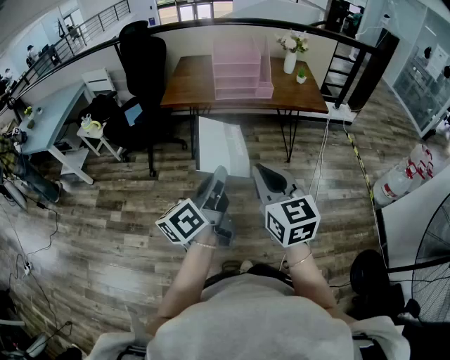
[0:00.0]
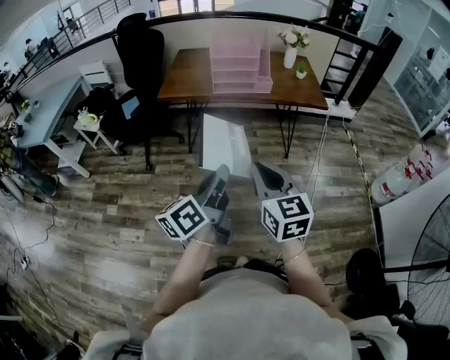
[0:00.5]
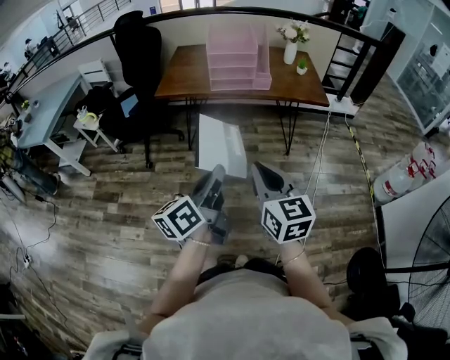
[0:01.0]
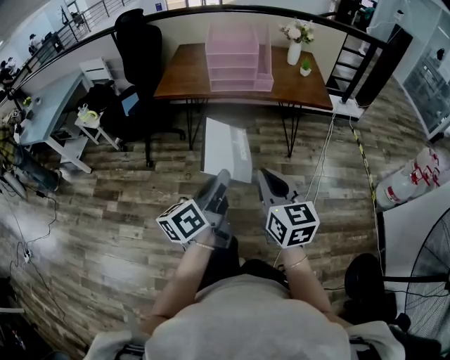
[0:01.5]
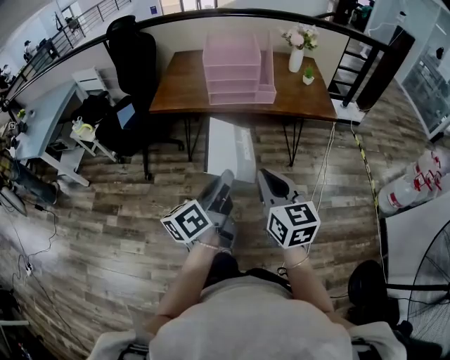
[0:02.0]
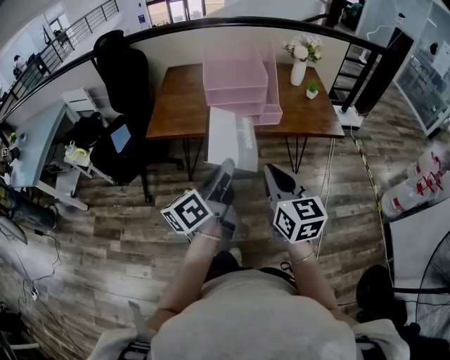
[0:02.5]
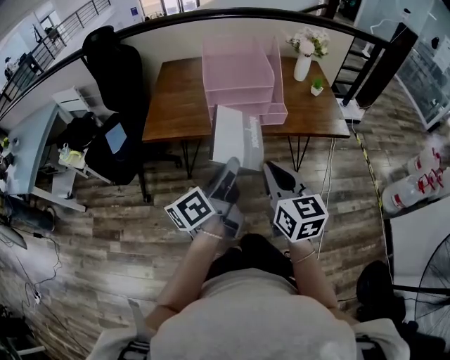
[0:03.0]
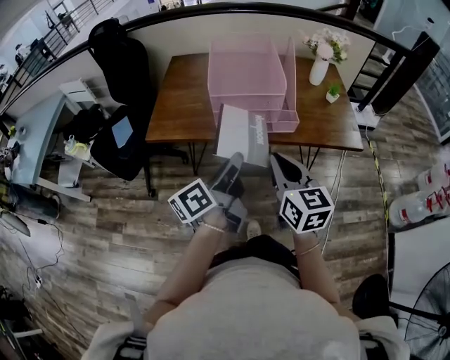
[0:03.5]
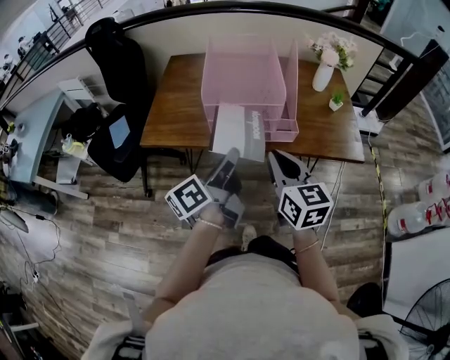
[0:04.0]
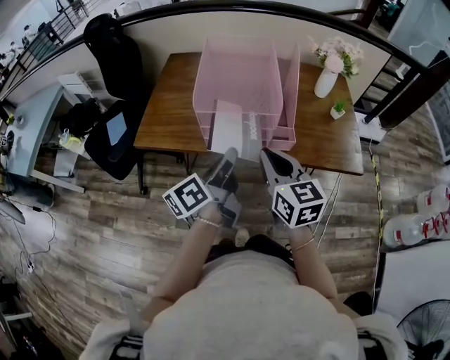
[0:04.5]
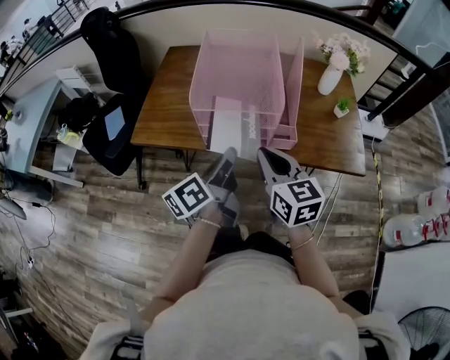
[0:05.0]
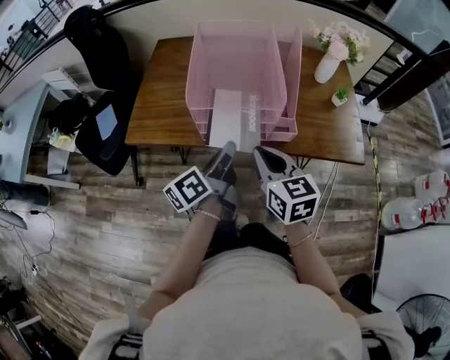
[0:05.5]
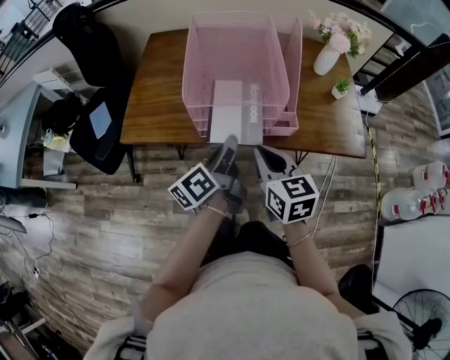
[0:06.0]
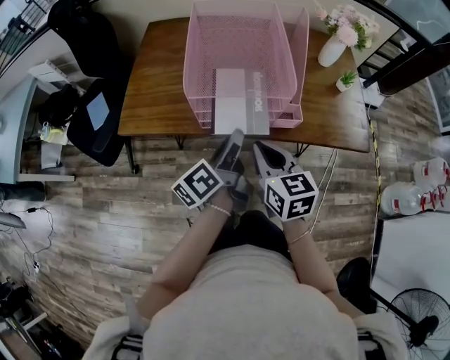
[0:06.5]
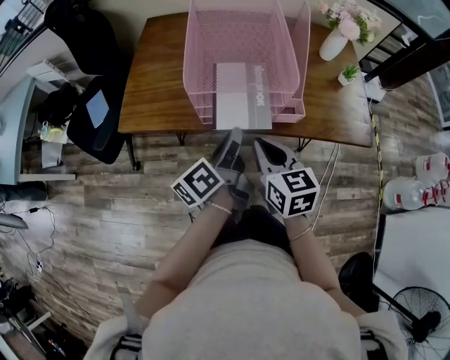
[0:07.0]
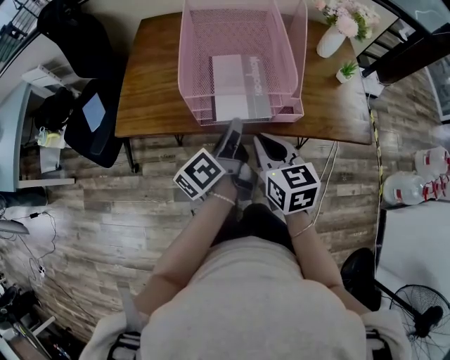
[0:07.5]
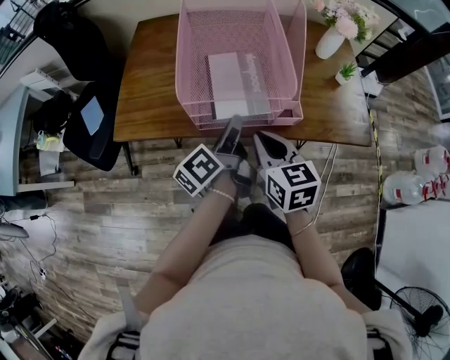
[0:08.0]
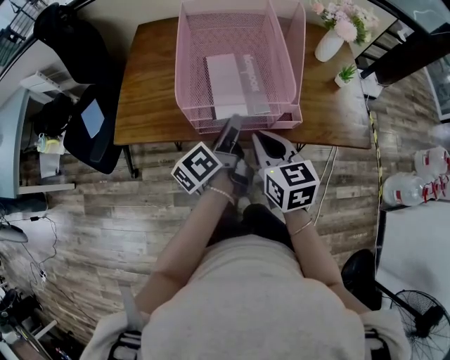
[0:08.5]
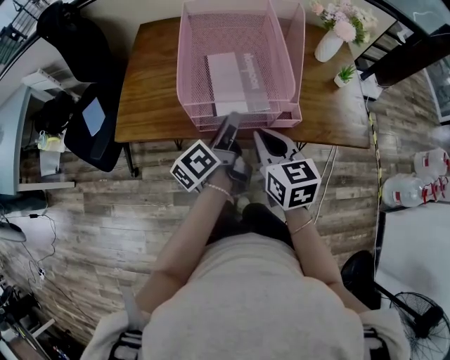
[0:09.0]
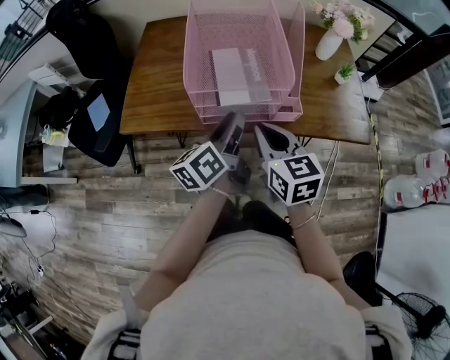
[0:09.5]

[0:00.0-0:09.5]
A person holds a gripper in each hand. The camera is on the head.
0:00.0 to 0:02.0: Both grippers travel together forward and downward, approximately 15 cm.
0:02.0 to 0:04.0: The grippers both shift forward by approximately 35 cm.
0:04.0 to 0:05.5: The left gripper shifts some 10 cm forward and downward. The right gripper heads forward, covering about 5 cm.
0:05.5 to 0:07.5: The left gripper opens, then closes again.
0:07.5 to 0:09.5: The left gripper opens up.

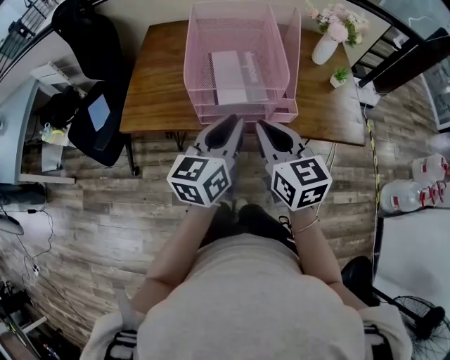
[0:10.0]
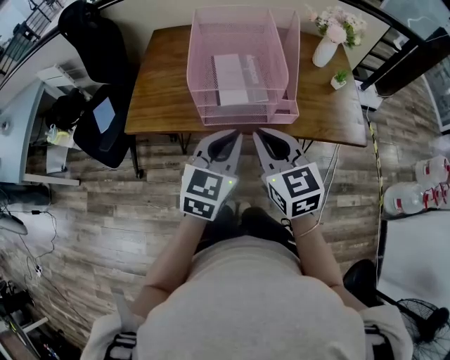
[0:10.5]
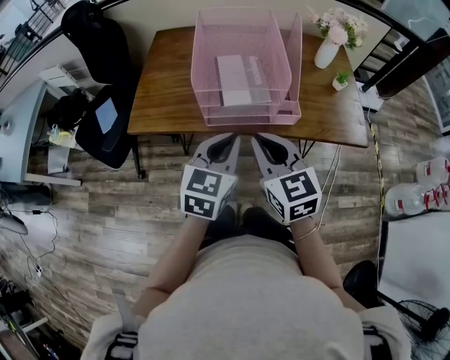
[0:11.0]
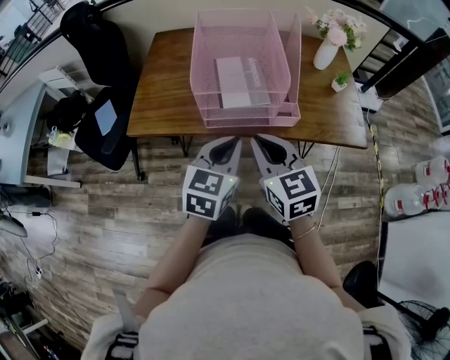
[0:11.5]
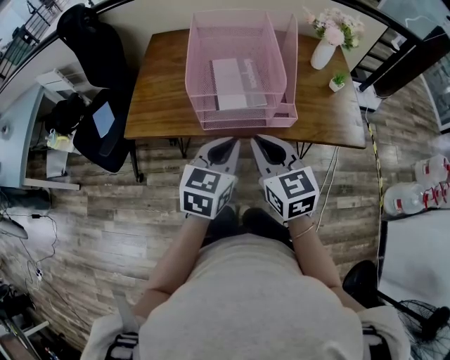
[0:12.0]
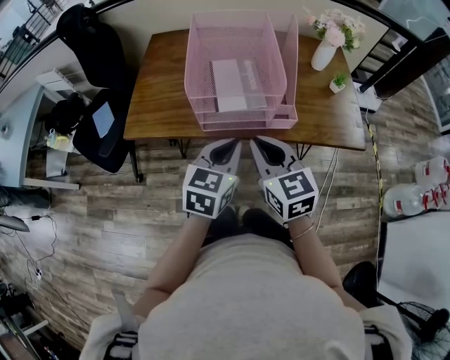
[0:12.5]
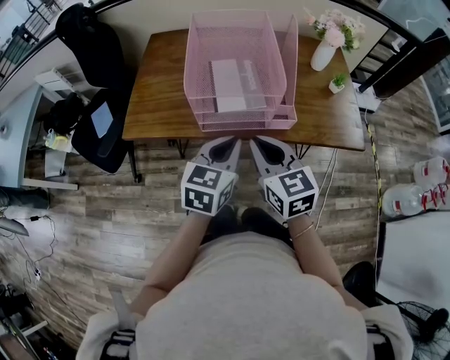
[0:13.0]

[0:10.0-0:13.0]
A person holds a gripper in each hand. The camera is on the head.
0:10.0 to 0:11.5: The left gripper swivels some 20 degrees.
0:11.5 to 0:13.0: The grippers stay close to where they were, moving slightly.

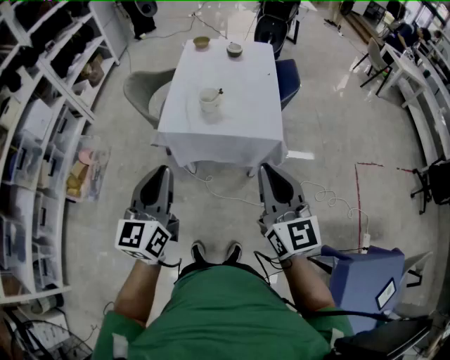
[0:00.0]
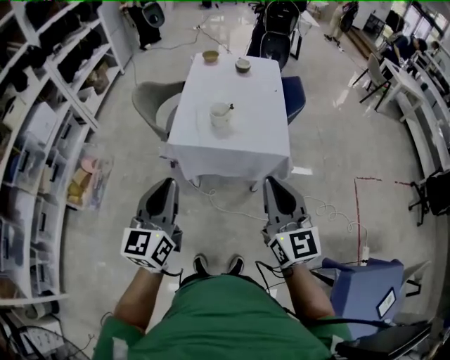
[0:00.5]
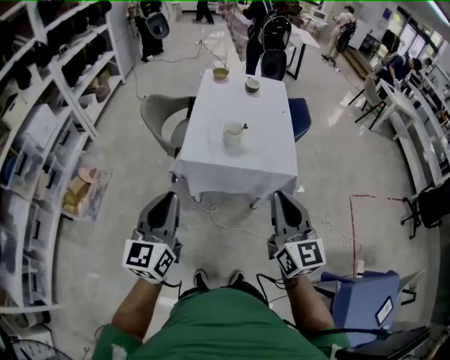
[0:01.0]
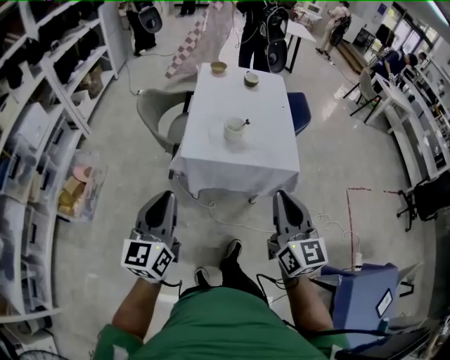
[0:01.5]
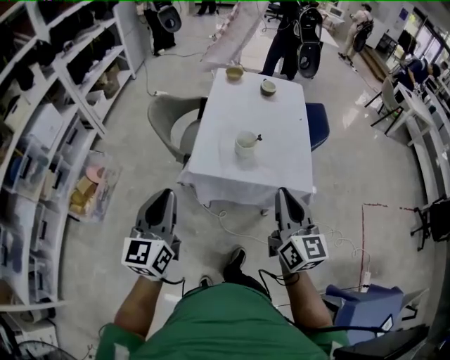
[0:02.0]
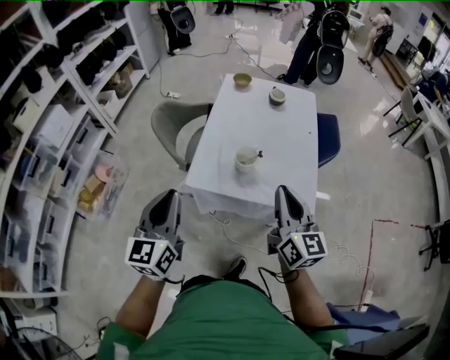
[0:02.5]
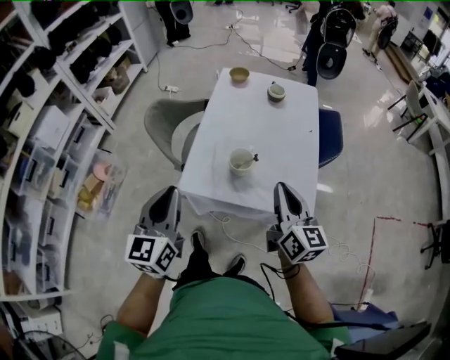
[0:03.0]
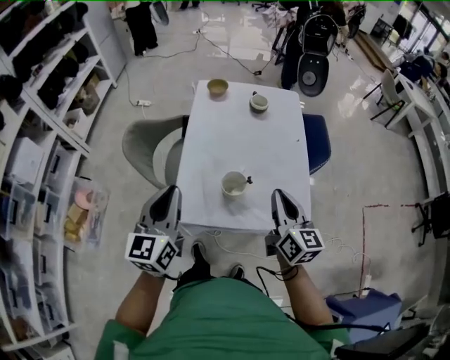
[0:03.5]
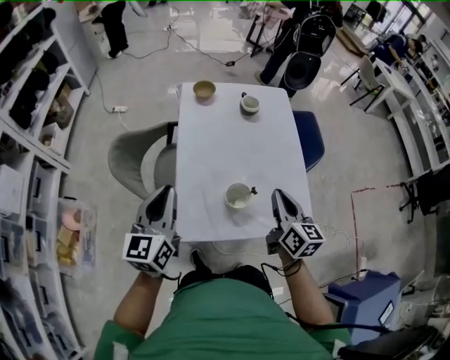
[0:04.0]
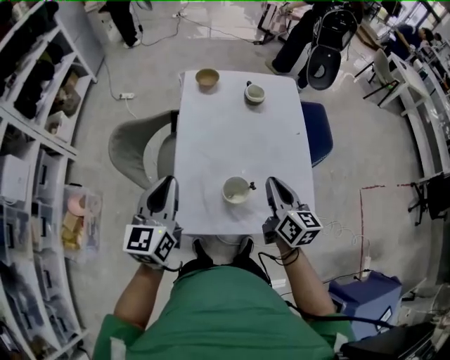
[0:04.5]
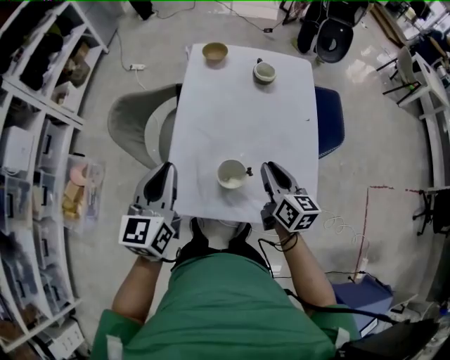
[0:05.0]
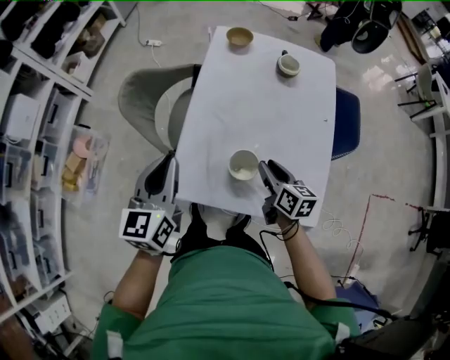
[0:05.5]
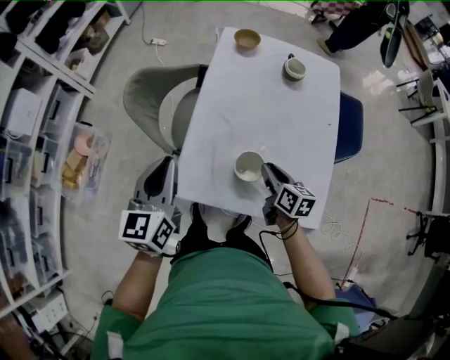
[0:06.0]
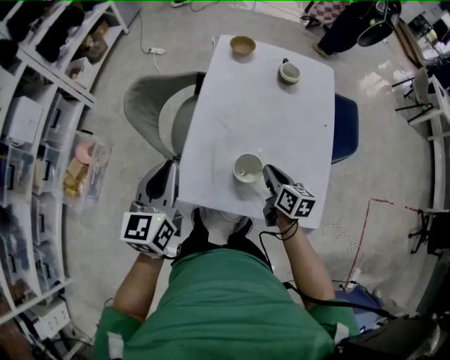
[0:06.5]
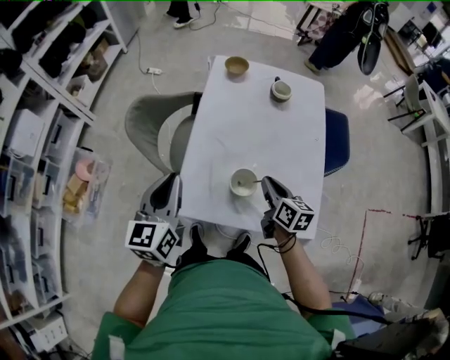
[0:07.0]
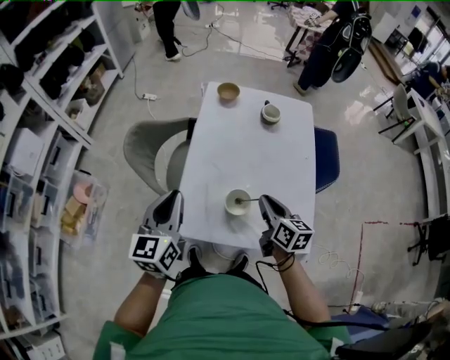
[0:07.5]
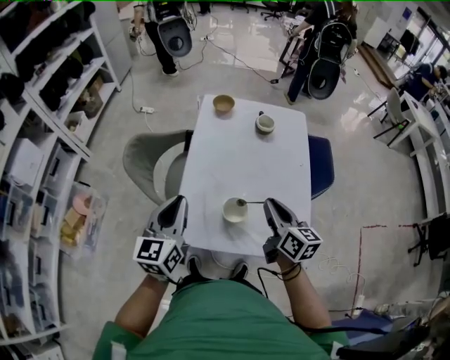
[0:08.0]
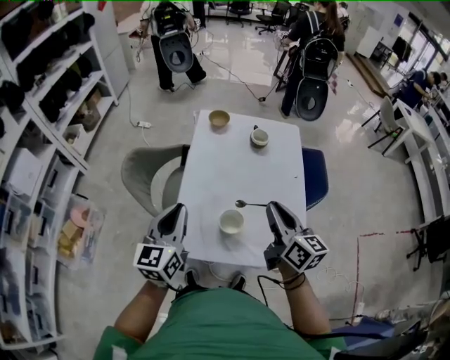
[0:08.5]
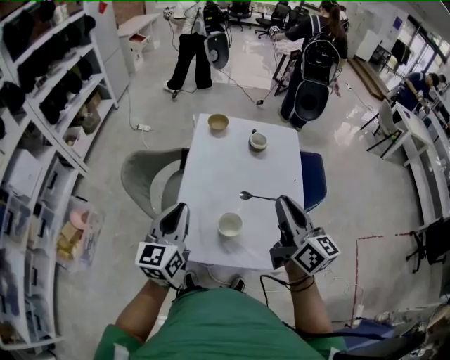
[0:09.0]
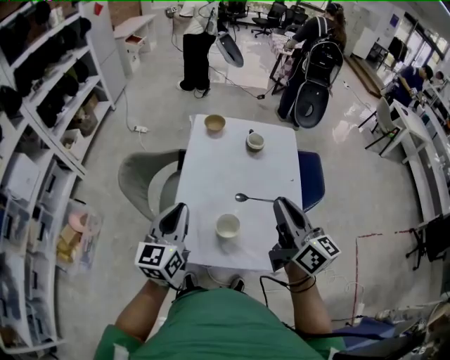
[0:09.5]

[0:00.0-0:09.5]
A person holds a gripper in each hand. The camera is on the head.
0:00.0 to 0:02.0: The left gripper travels to the left and forward by about 20 cm; the right gripper heads forward and to the left, covering about 15 cm.
0:02.0 to 0:04.0: Both grippers move forward, roughly 35 cm. The right gripper turns by roughly 20 degrees.
0:04.0 to 0:05.5: The right gripper is displaced downward by roughly 15 cm, rotates roughly 30 degrees, and opens; the left gripper changes place by about 5 cm.
0:05.5 to 0:07.5: The right gripper is displaced upward by approximately 10 cm, and closes.
0:07.5 to 0:09.5: The right gripper is displaced upward by about 20 cm, and turns by about 30 degrees. Meanwhile the left gripper moves approximately 5 cm.

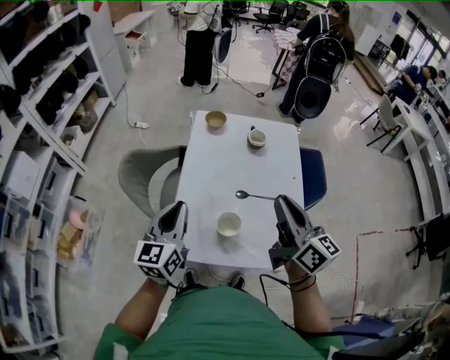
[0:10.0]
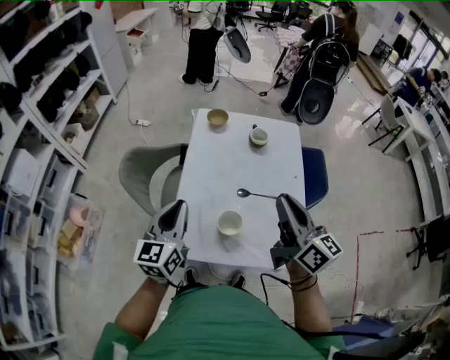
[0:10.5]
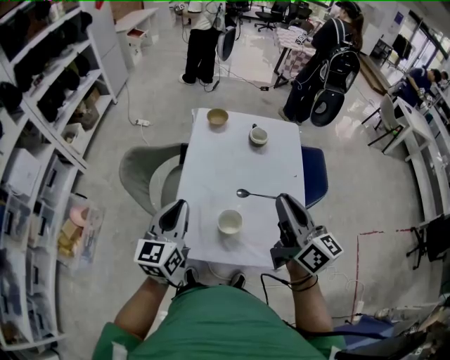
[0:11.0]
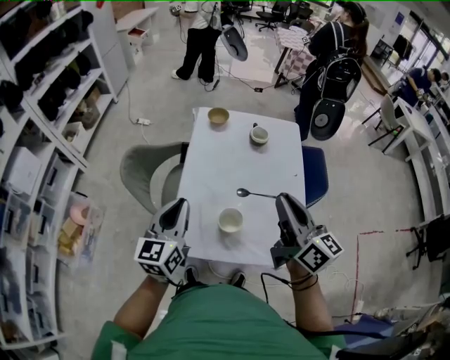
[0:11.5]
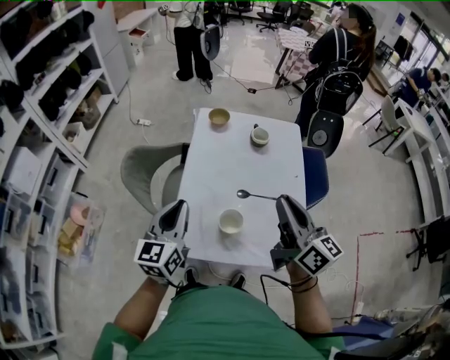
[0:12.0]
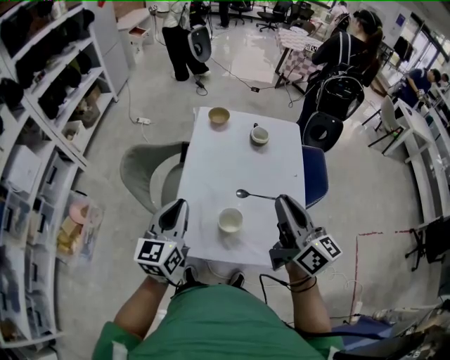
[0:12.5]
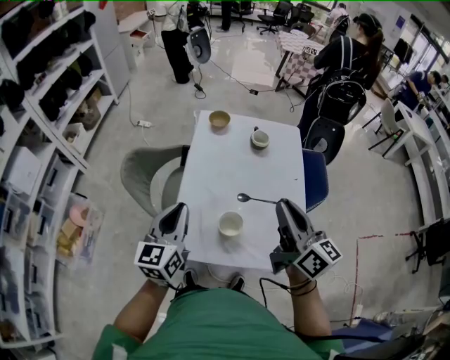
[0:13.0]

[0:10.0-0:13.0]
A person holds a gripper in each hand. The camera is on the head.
0:10.0 to 0:11.5: Both grippers stay about where they are.
0:11.5 to 0:13.0: Both grippers stay put.

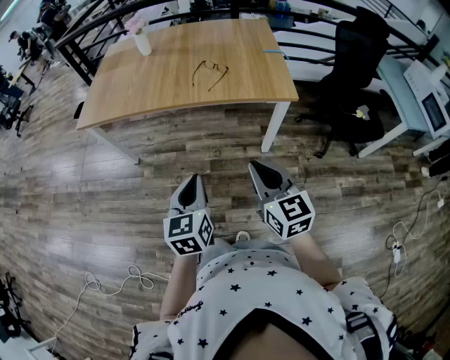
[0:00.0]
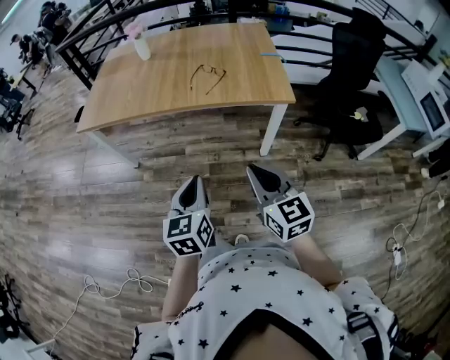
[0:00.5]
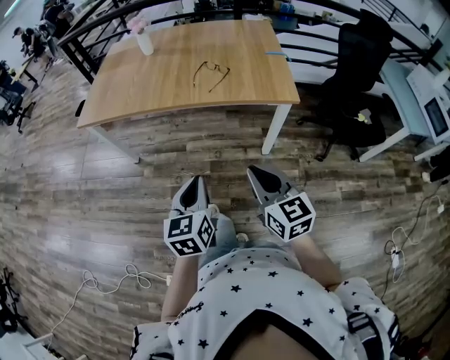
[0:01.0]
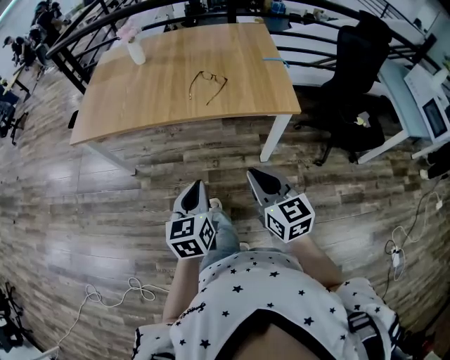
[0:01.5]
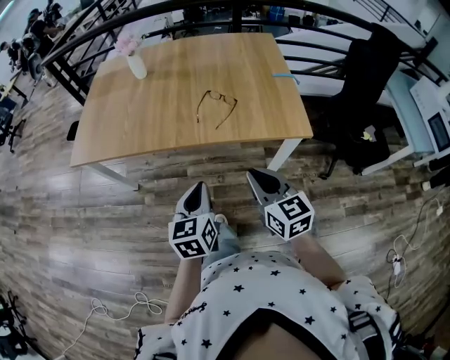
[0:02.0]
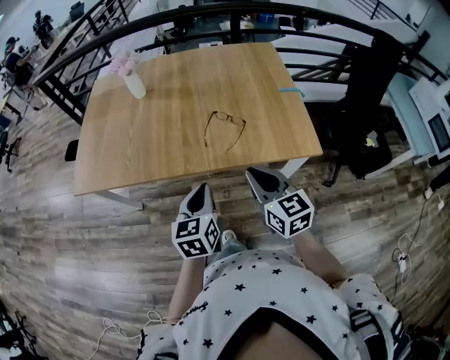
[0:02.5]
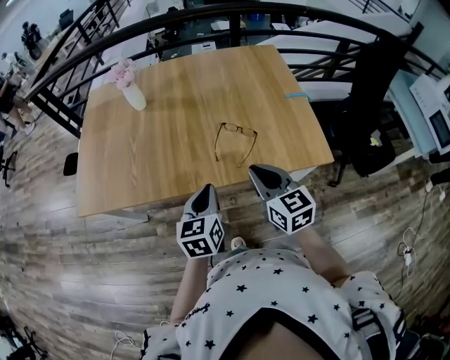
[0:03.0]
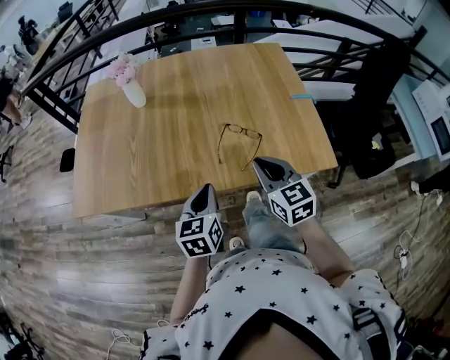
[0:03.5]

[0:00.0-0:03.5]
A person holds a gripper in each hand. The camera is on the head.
0:00.0 to 0:02.0: The grippers both shift forward by roughly 20 cm.
0:02.0 to 0:03.5: Both grippers travel together forward, about 20 cm.
